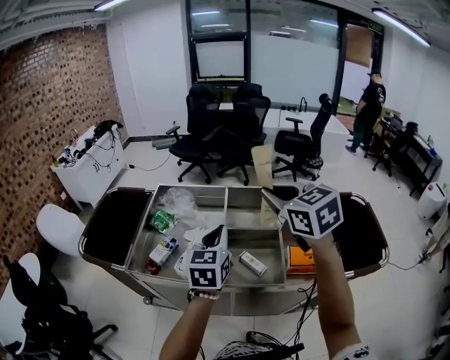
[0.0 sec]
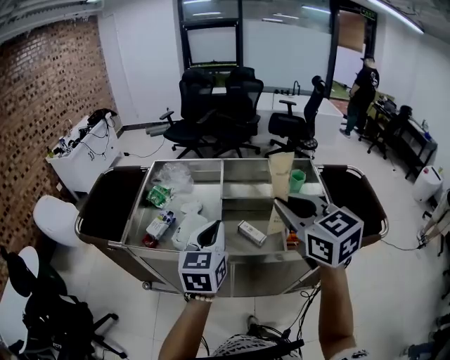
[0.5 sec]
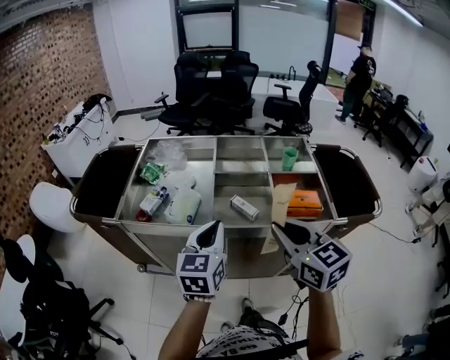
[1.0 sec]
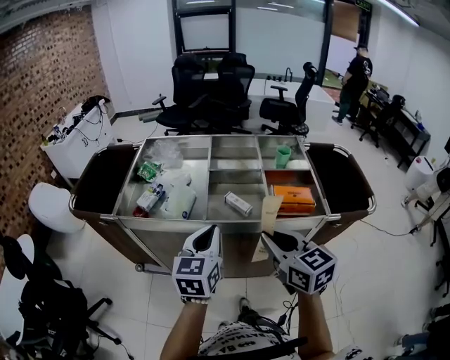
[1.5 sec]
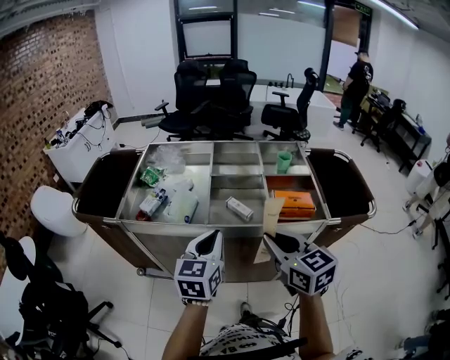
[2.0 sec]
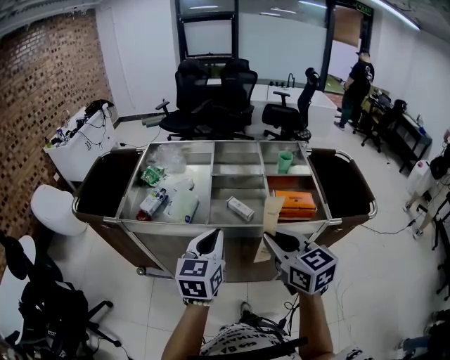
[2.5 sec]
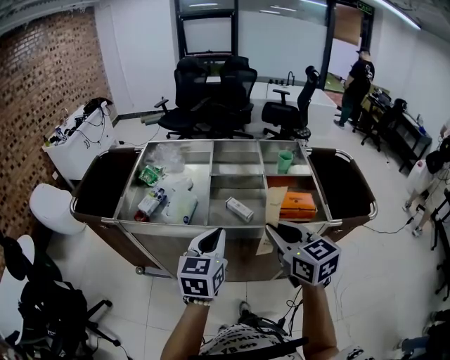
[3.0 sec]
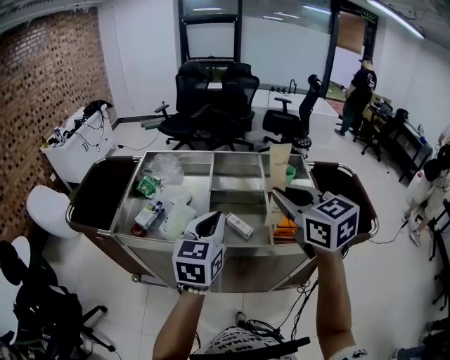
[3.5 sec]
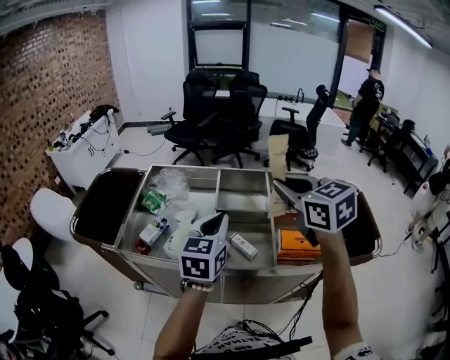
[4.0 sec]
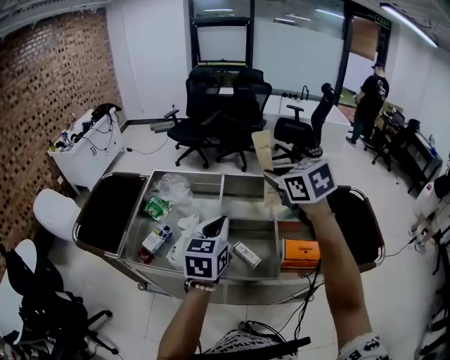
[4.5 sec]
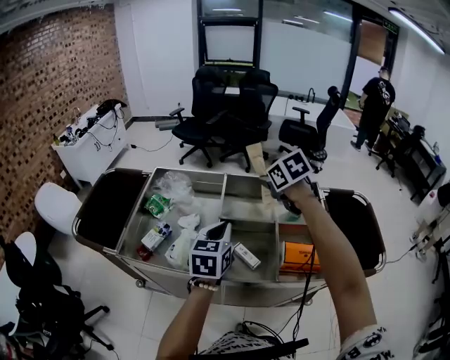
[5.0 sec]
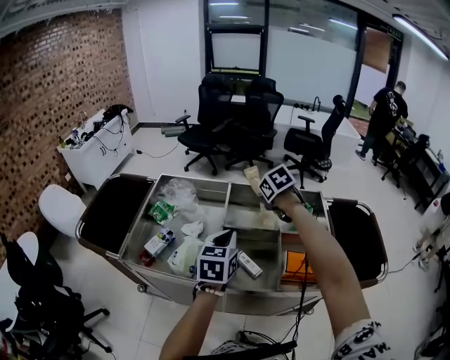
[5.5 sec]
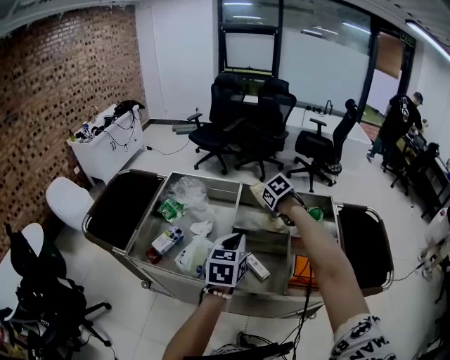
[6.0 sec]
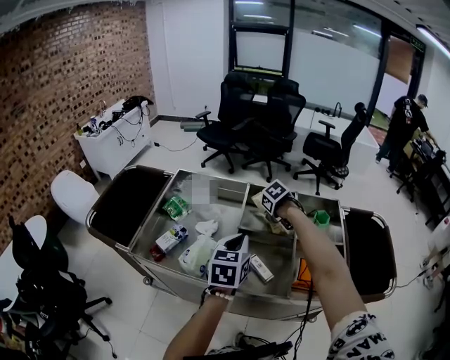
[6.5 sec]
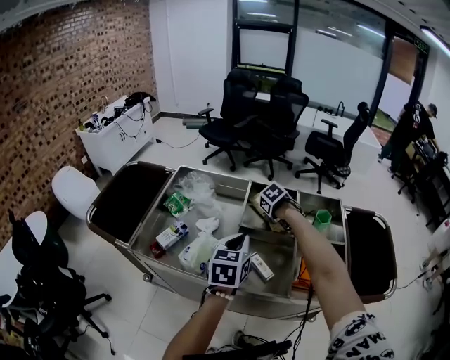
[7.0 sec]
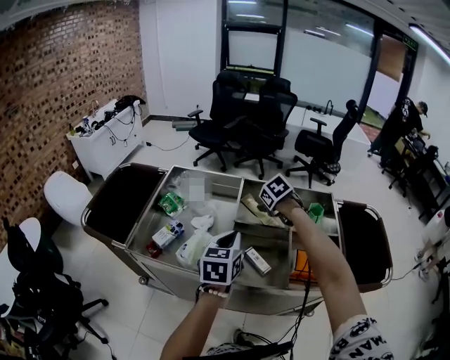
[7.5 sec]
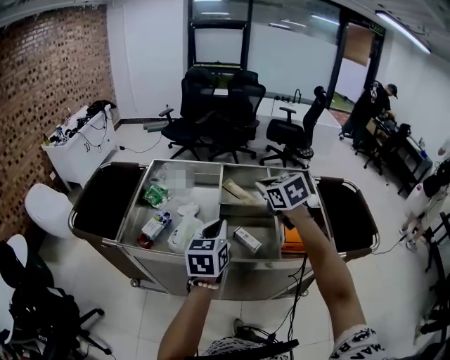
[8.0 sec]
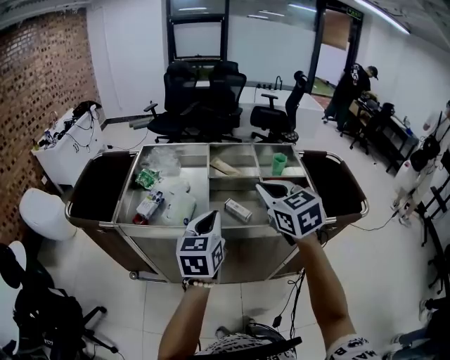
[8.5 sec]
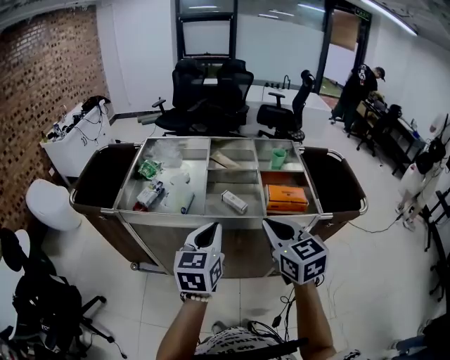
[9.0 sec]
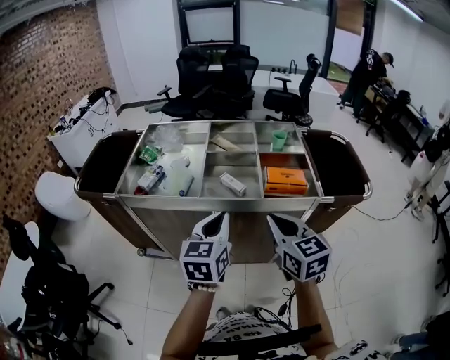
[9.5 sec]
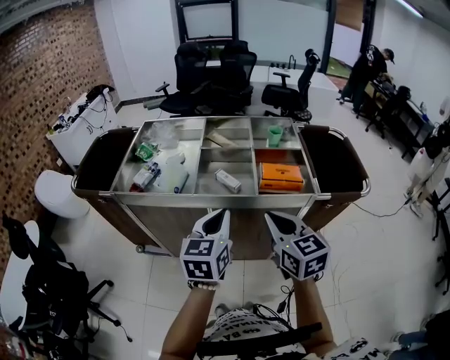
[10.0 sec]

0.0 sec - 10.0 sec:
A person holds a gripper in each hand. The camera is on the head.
0.0 sec - 2.0 sec: The right gripper is displaced backward and downward by some 30 cm. The left gripper moves backward and downward, approximately 20 cm.
2.0 sec - 4.0 sec: The right gripper heads forward and upward, covering some 25 cm. The left gripper shifts roughly 15 cm forward and upward.
4.0 sec - 6.0 sec: The left gripper shifts some 5 cm downward. Meanwhile the right gripper is displaced downward and forward by approximately 35 cm, and tilts its fingers some 50 degrees downward.
6.0 sec - 8.0 sec: The right gripper shifts approximately 15 cm upward, tips its fingers upward by about 40 degrees, and opens, then closes again. Meanwhile the left gripper moves about 5 cm.
8.0 sec - 10.0 sec: The left gripper moves backward, some 20 cm. The right gripper shifts about 30 cm backward, and changes its angle by roughly 20 degrees.

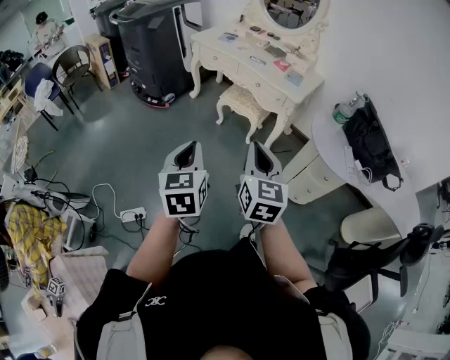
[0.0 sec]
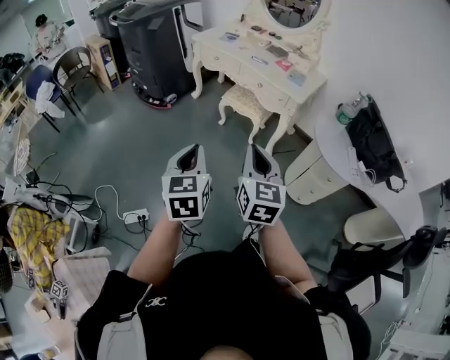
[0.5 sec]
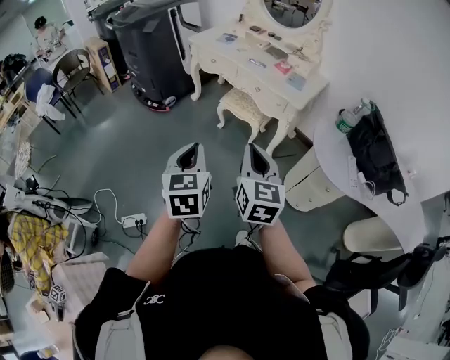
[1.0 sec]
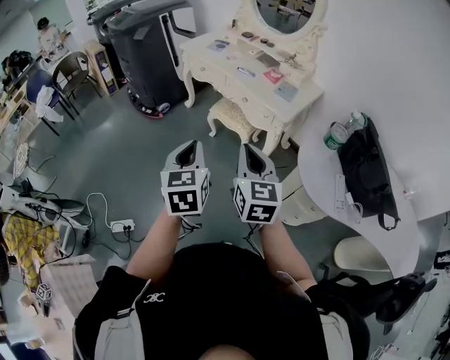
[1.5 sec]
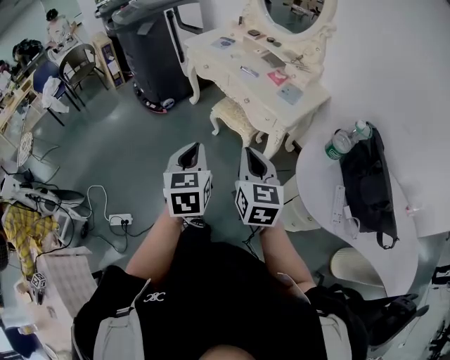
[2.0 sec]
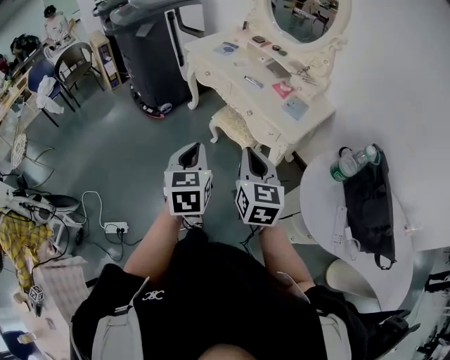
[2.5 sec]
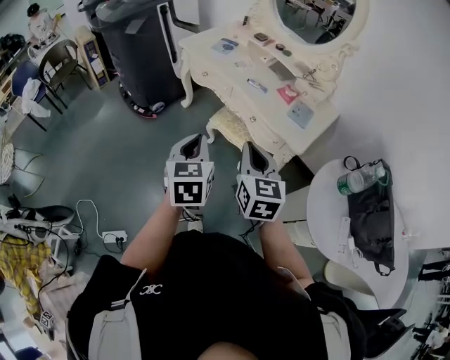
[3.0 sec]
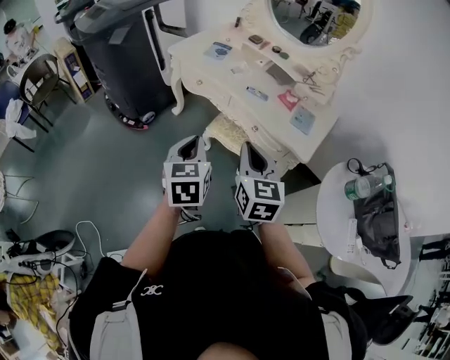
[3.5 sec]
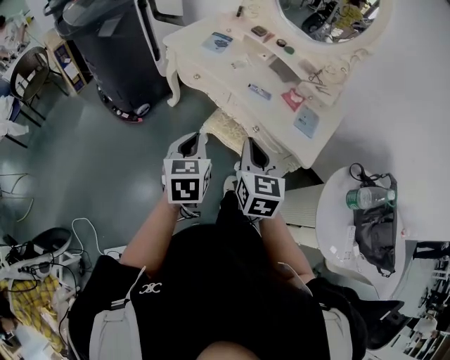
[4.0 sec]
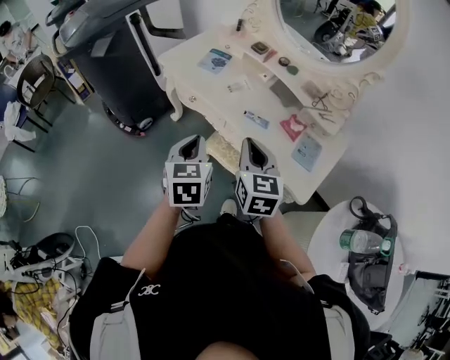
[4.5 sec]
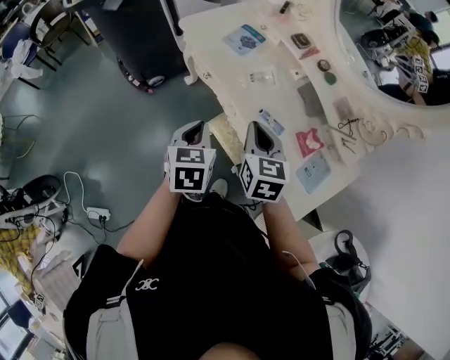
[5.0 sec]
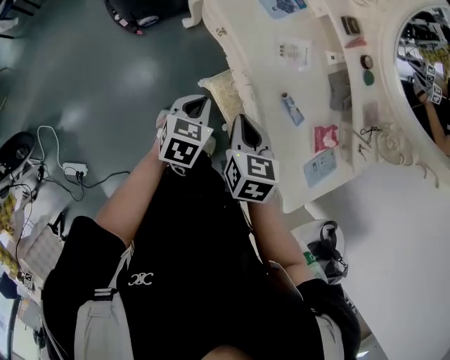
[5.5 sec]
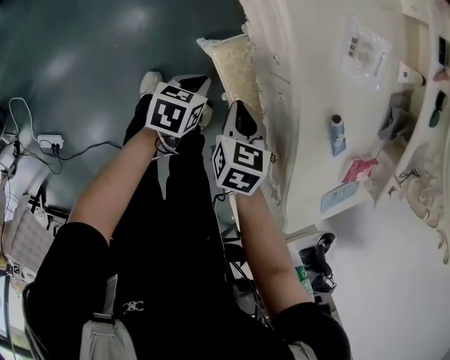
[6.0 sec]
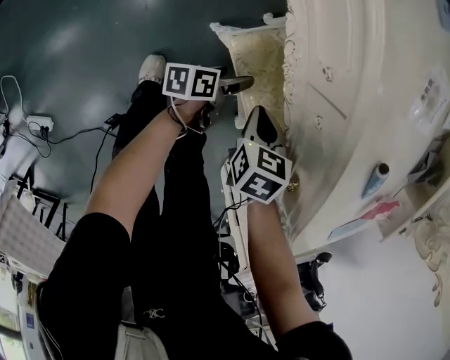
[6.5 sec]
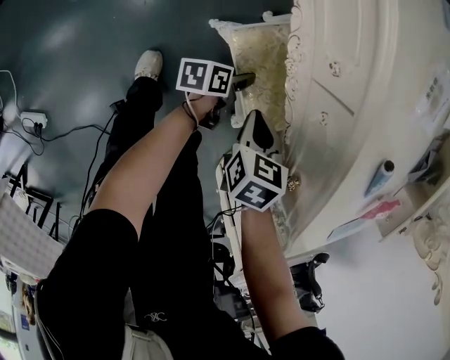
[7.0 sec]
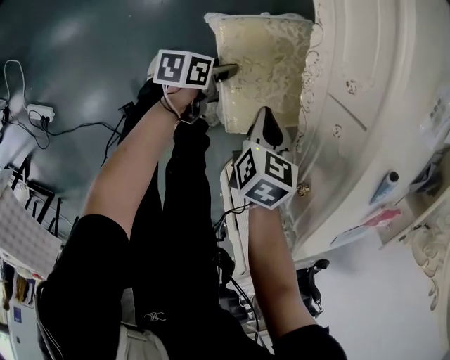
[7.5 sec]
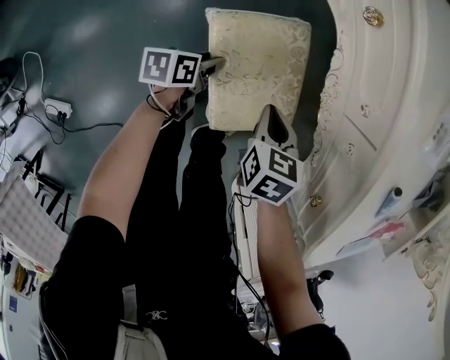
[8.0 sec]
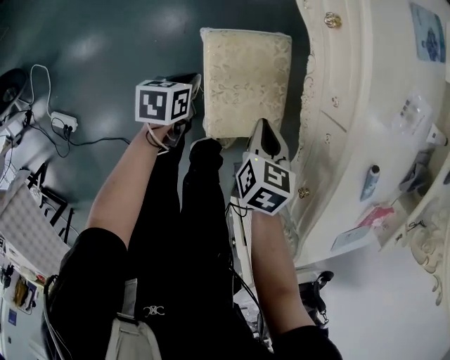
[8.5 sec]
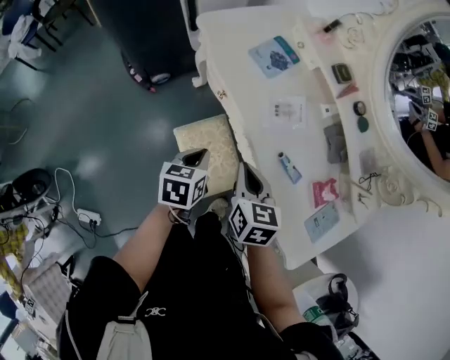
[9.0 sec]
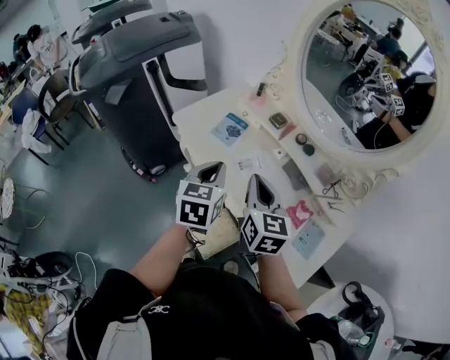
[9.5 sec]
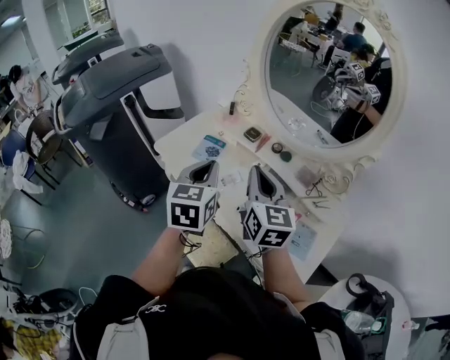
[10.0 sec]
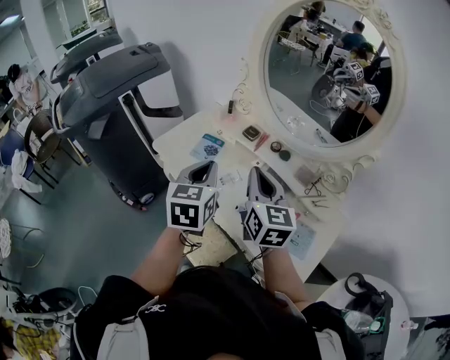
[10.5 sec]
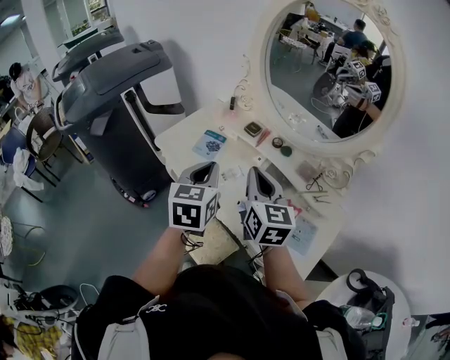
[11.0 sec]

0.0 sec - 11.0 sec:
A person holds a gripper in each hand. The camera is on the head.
0.0 sec - 2.0 sec: The right gripper goes approximately 25 cm forward and to the right. Meanwhile the left gripper travels to the right and forward by about 25 cm.
2.0 sec - 3.5 sec: The right gripper goes roughly 30 cm forward and to the left, while the left gripper shifts some 30 cm forward.
3.5 sec - 5.5 sec: Both grippers move forward and downward, some 35 cm. The right gripper changes its angle by roughly 30 degrees, while the left gripper changes its angle by approximately 20 degrees.
5.5 sec - 7.5 sec: The grippers both shift downward by about 35 cm. The left gripper rolls counterclockwise, seen from behind, by roughly 50 degrees, and opens its fingers.
7.5 sec - 9.0 sec: The grippers both shift upward by some 35 cm. The left gripper rotates roughly 40 degrees, and closes; the right gripper turns by approximately 30 degrees.
9.0 sec - 11.0 sec: The right gripper moves upward and to the right, some 30 cm, and swivels some 30 degrees. Meanwhile the left gripper heads upward, covering some 30 cm, and rotates some 40 degrees.

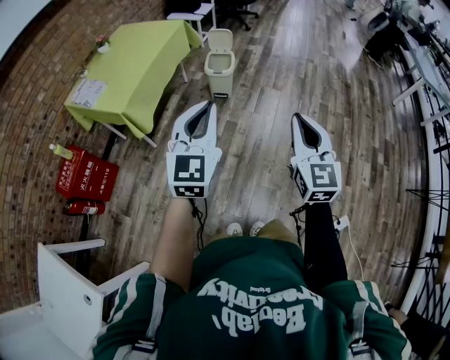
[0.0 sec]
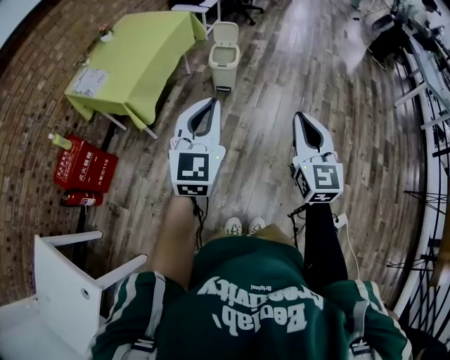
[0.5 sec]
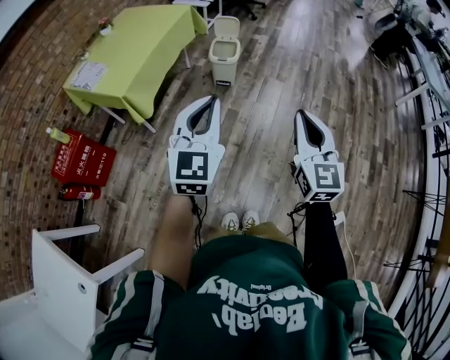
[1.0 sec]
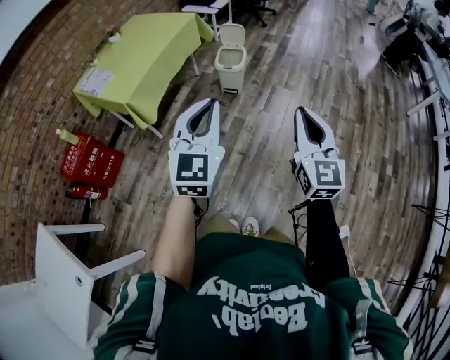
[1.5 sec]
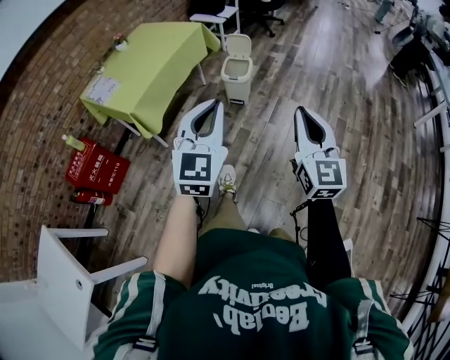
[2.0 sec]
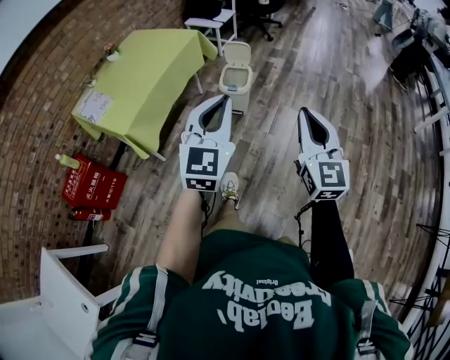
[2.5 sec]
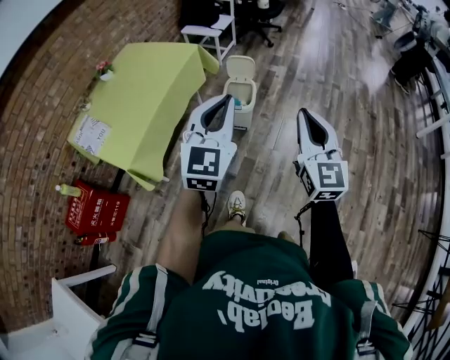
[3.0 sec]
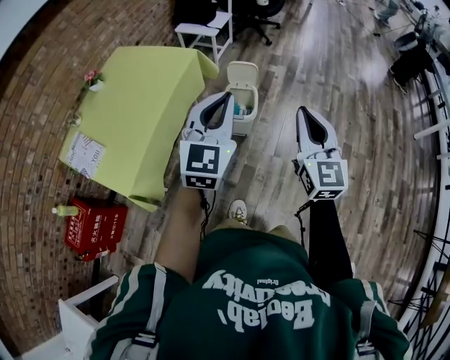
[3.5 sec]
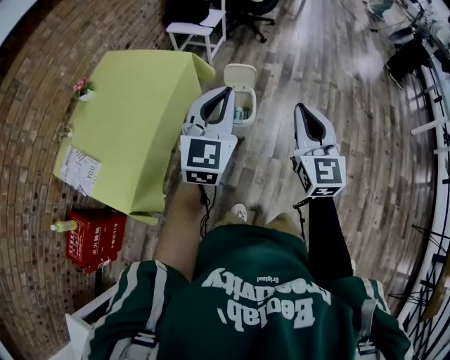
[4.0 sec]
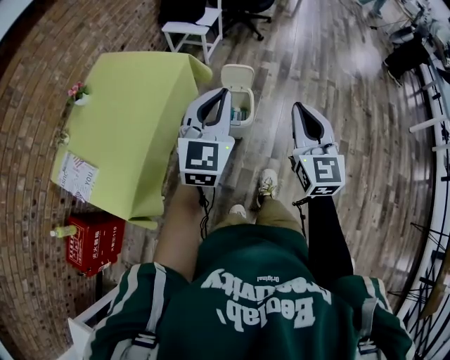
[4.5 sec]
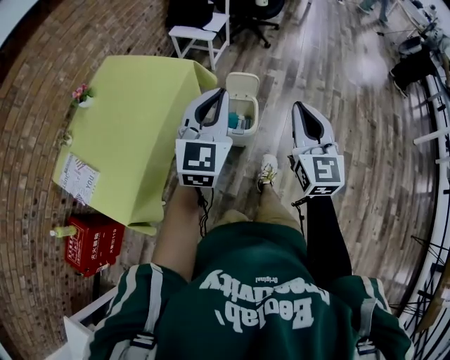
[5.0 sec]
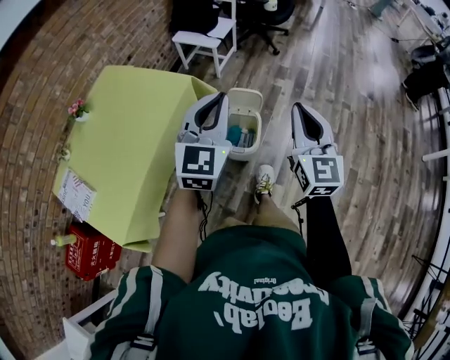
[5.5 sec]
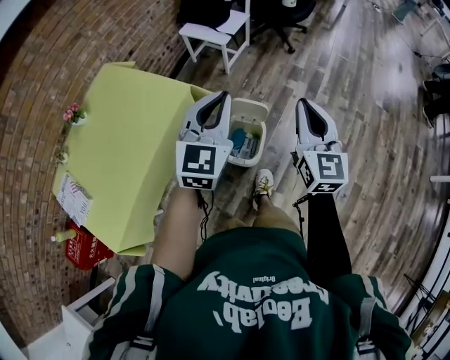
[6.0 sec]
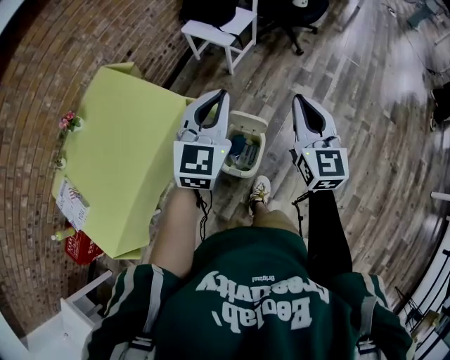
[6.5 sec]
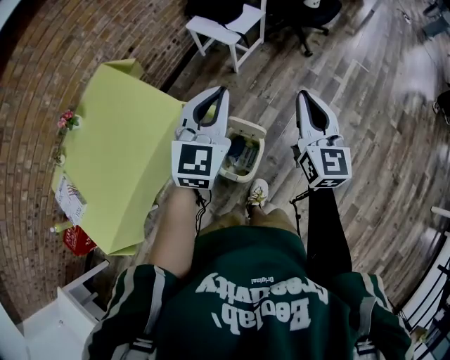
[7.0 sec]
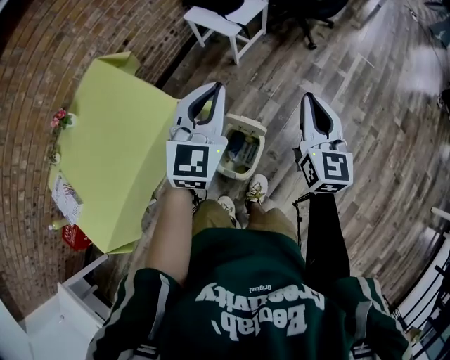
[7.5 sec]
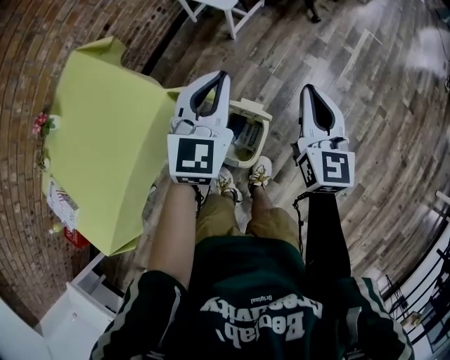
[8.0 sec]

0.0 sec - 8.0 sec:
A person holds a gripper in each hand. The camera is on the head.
0.0 sec - 2.0 sec: The right gripper travels forward by some 5 cm, while the left gripper heads to the right, covering roughly 5 cm.
2.0 sec - 4.0 sec: The two grippers travel together, forward, approximately 50 cm.
4.0 sec - 6.0 sec: Both grippers travel together forward, some 30 cm.
6.0 sec - 8.0 sec: Both grippers travel together forward and downward, roughly 25 cm.
